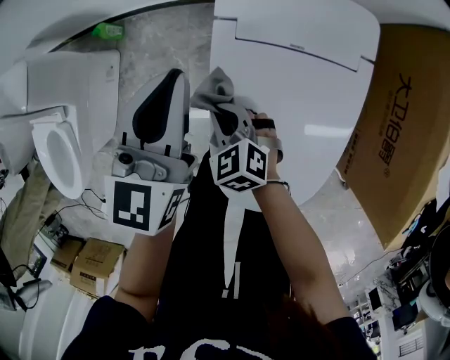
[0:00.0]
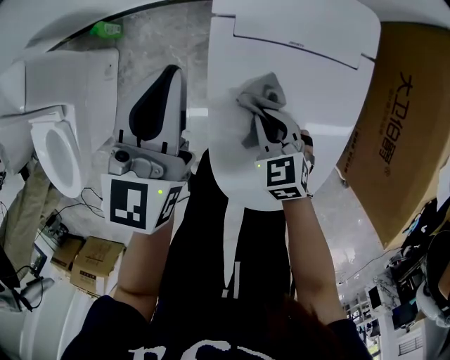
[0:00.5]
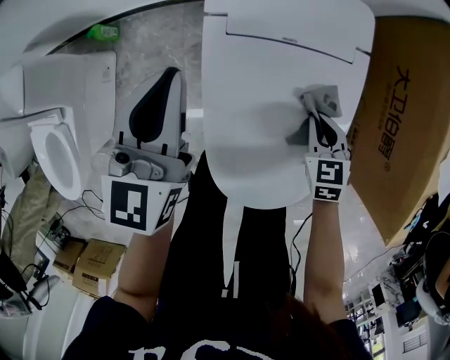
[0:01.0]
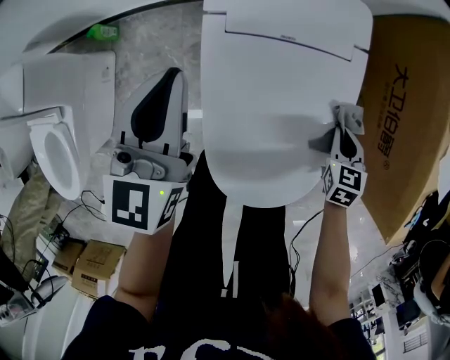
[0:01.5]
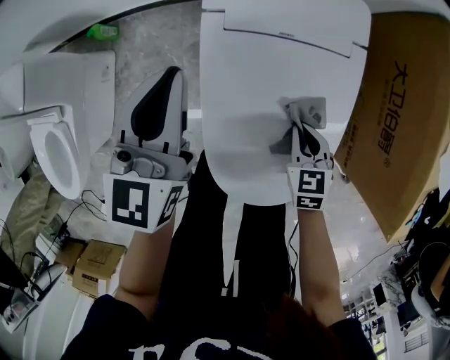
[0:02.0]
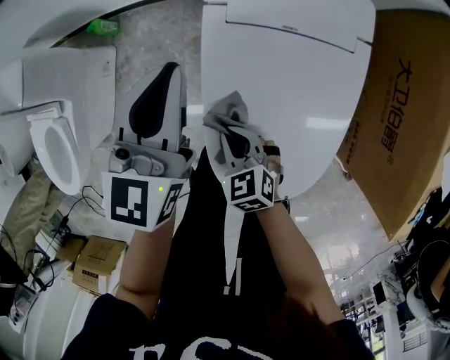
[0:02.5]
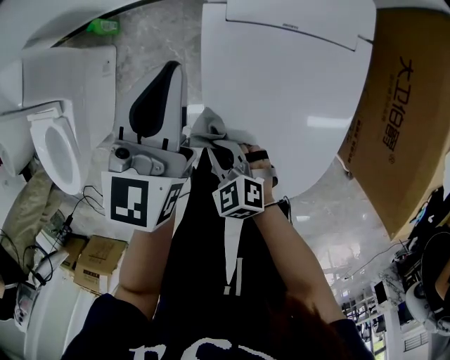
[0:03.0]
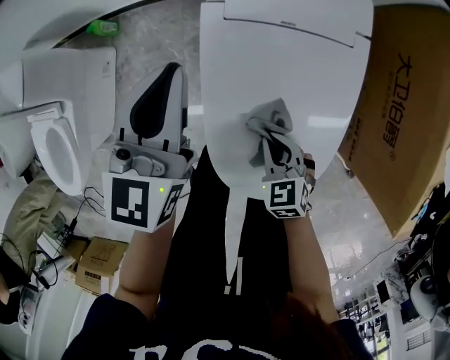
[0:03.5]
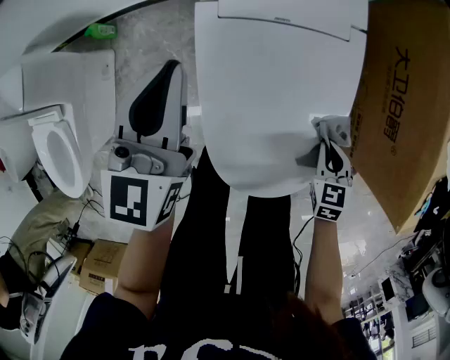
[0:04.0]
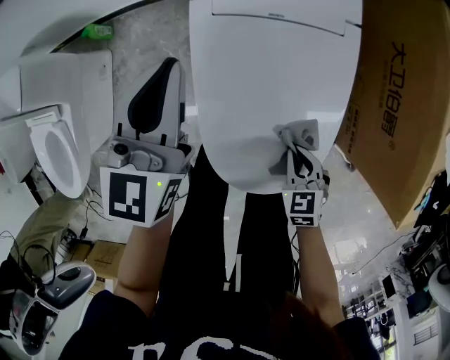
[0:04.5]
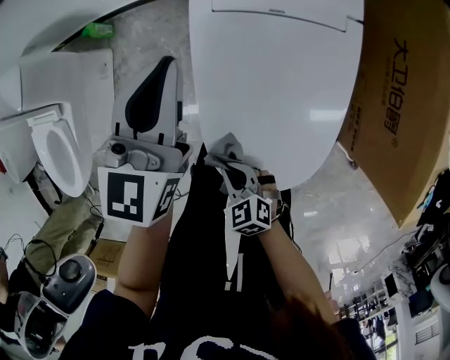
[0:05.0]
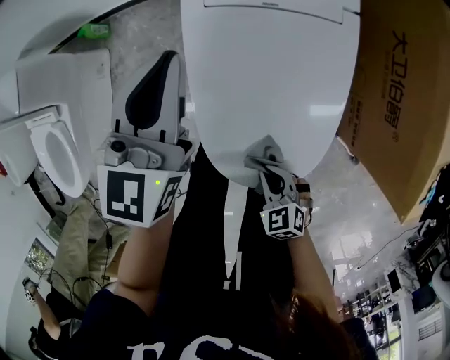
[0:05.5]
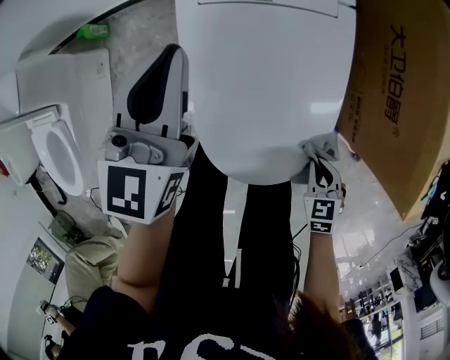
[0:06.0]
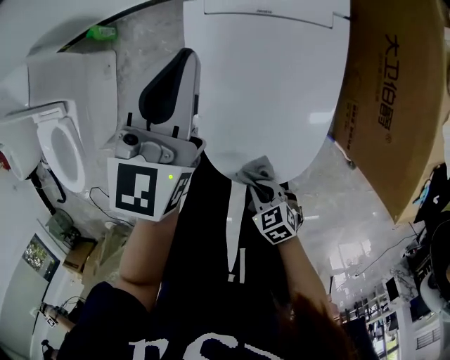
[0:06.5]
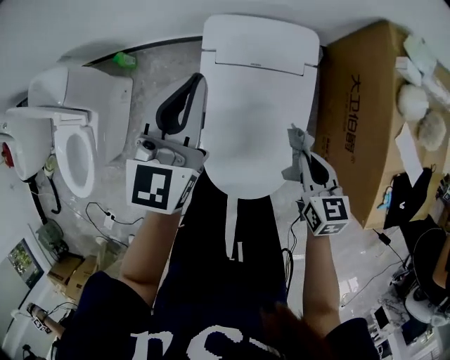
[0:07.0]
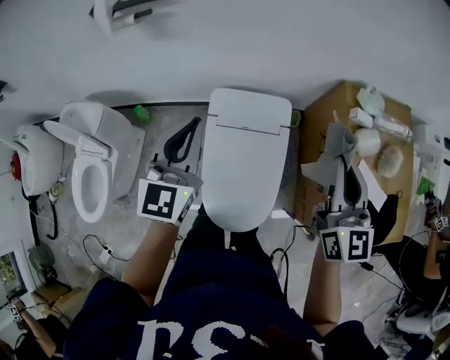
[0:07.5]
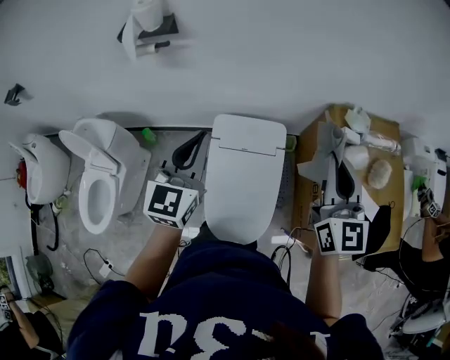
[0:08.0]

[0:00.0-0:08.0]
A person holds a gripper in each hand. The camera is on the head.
0:00.0 to 0:02.0: The right gripper swivels some 30 degrees.
0:06.0 to 0:08.0: The left gripper travels upward by some 40 cm; the right gripper is displaced upward by about 70 cm, and tilts its fingers some 70 degrees upward.

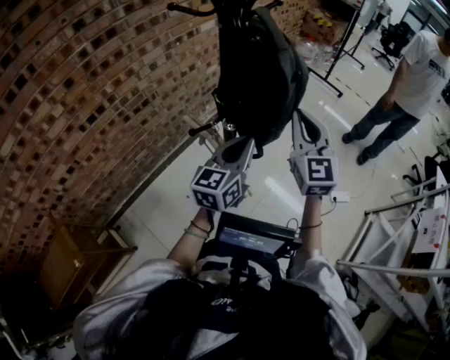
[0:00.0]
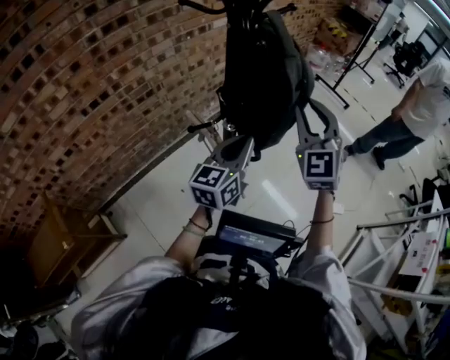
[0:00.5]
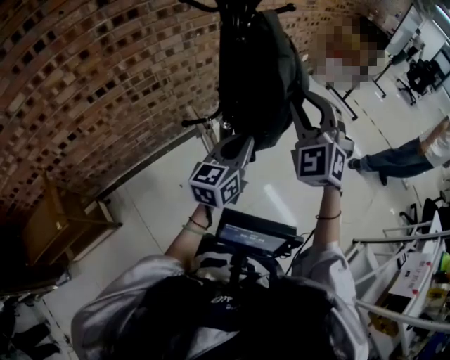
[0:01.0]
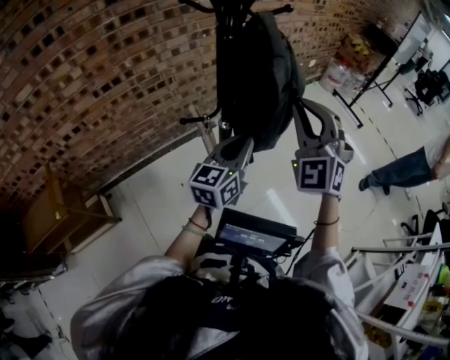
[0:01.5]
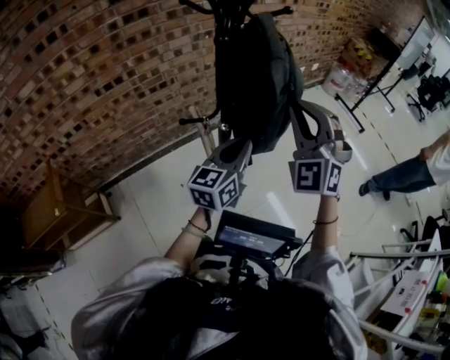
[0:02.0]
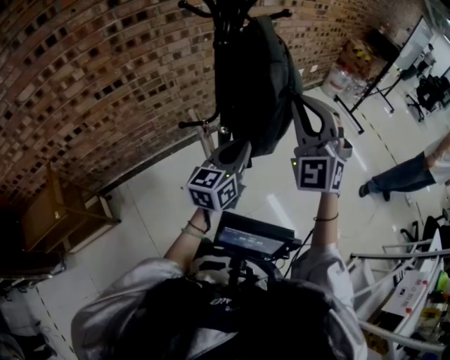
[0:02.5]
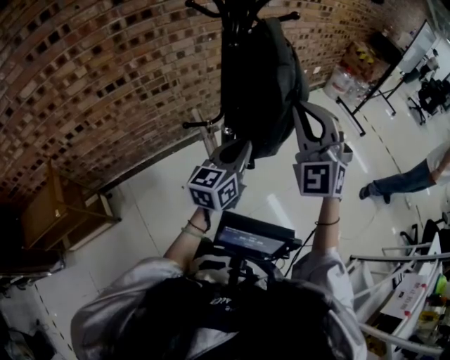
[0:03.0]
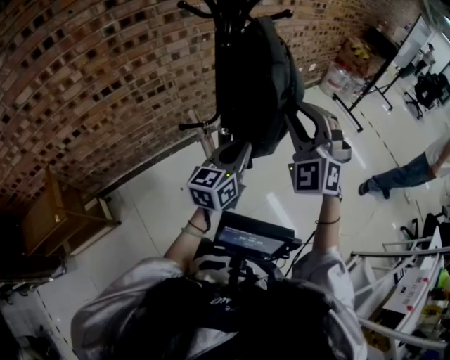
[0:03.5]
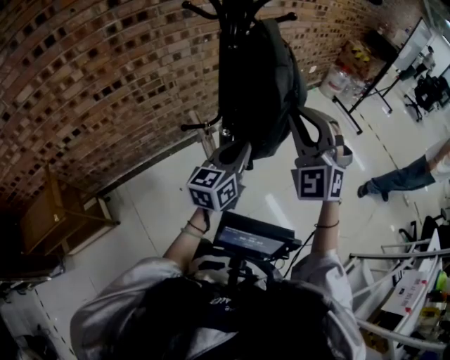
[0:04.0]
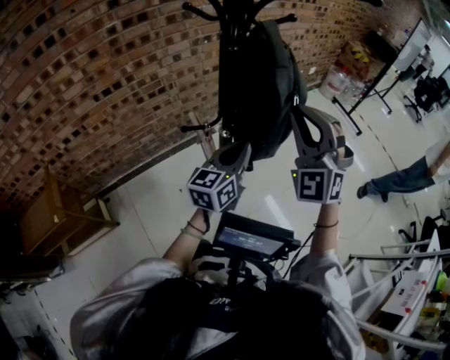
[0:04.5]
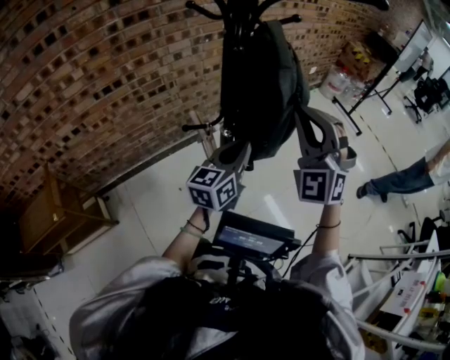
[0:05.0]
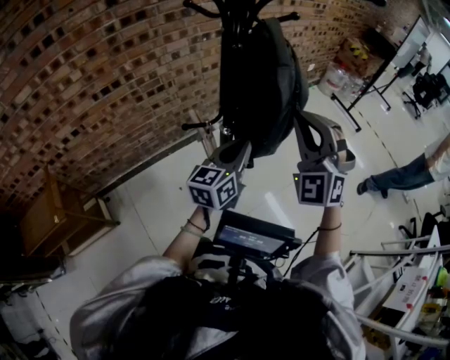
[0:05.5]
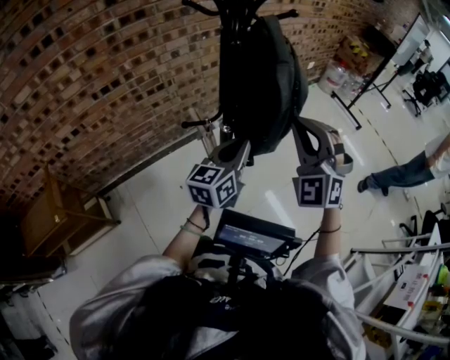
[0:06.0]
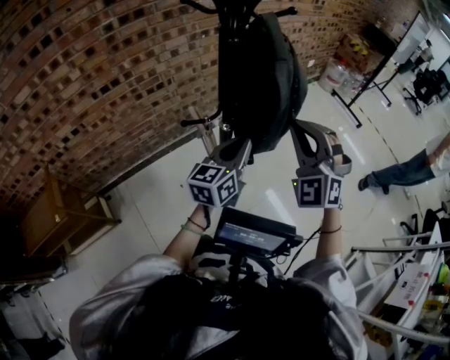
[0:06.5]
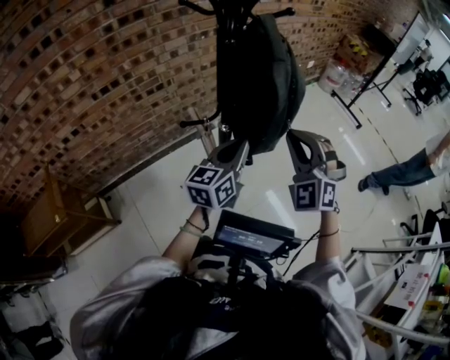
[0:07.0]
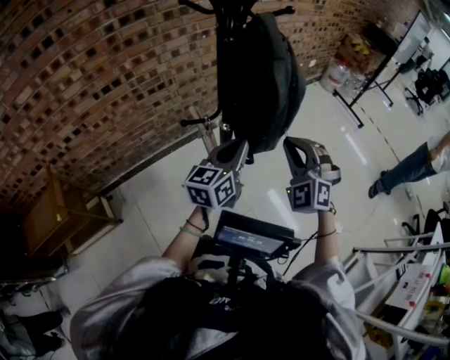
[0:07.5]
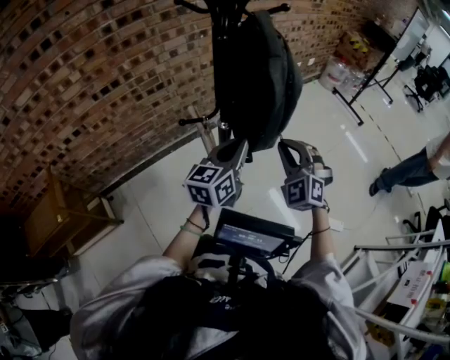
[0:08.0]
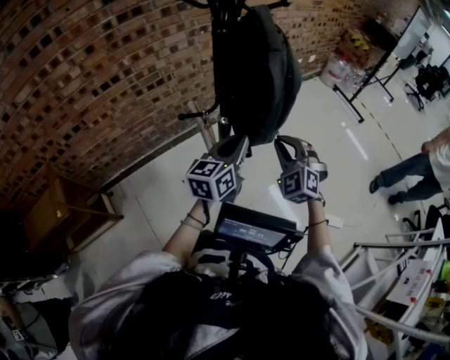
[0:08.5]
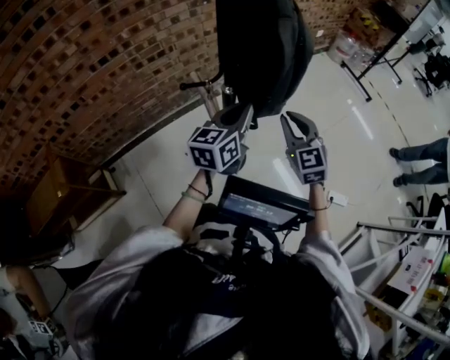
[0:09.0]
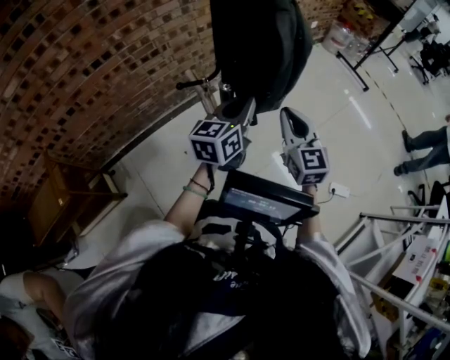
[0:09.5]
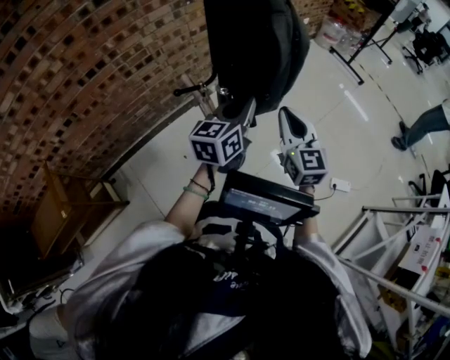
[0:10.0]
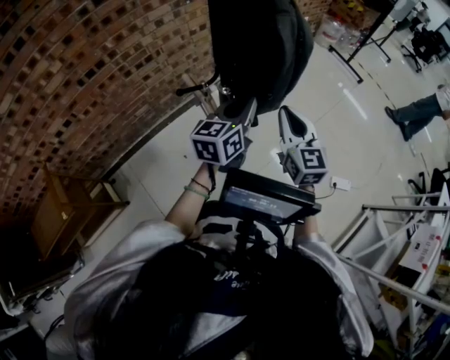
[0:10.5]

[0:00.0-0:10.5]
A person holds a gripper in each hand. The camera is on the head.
0:00.0 to 0:02.0: The right gripper moves roughly 5 cm, and rotates around the line of its fingers by roughly 40 degrees, counterclockwise from behind.
0:02.0 to 0:04.0: The grippers make only small movements.
0:04.0 to 0:06.5: The right gripper shifts by approximately 5 cm.
0:06.5 to 0:08.5: The right gripper is displaced downward by about 15 cm.
0:08.5 to 0:10.5: The right gripper ends up some 5 cm from where it was, and rotates around the line of its fingers by approximately 50 degrees, clockwise from behind.

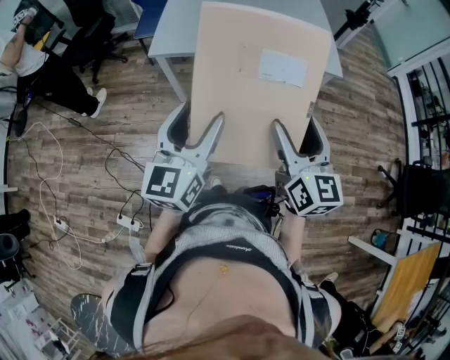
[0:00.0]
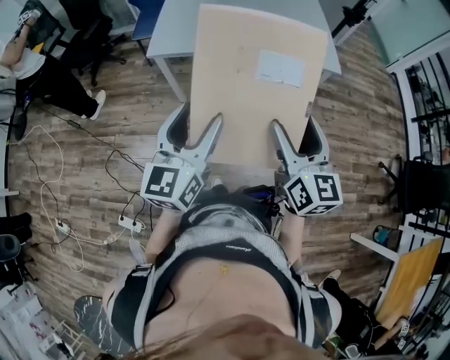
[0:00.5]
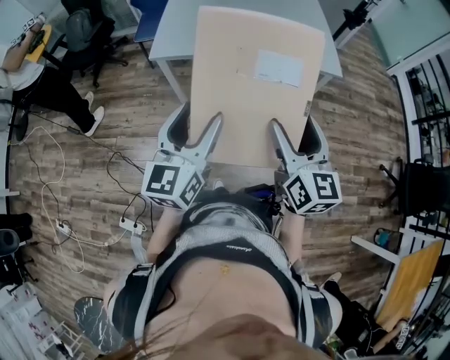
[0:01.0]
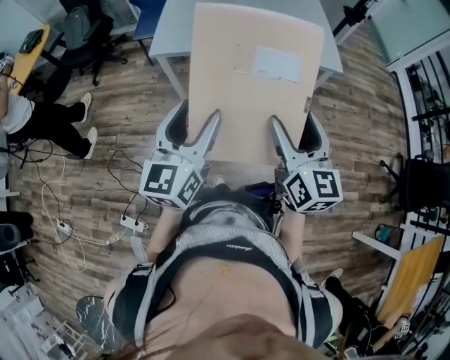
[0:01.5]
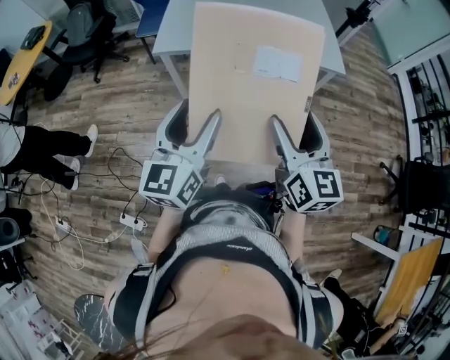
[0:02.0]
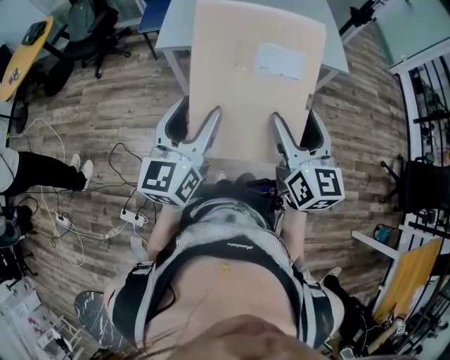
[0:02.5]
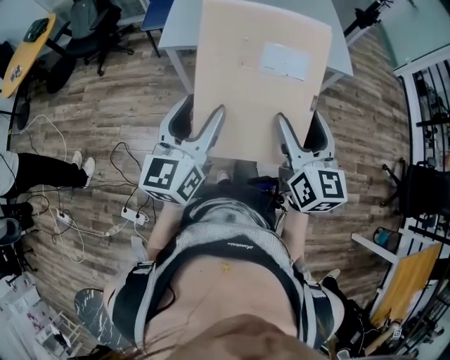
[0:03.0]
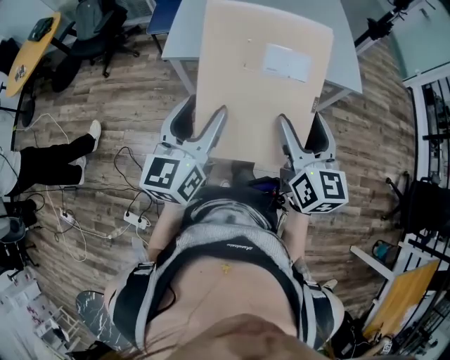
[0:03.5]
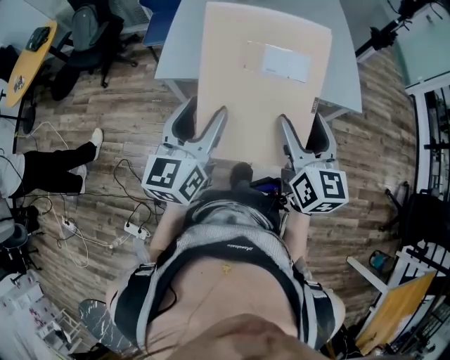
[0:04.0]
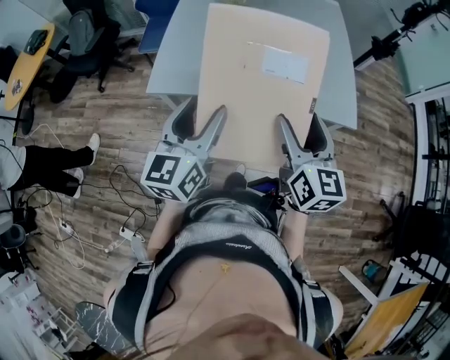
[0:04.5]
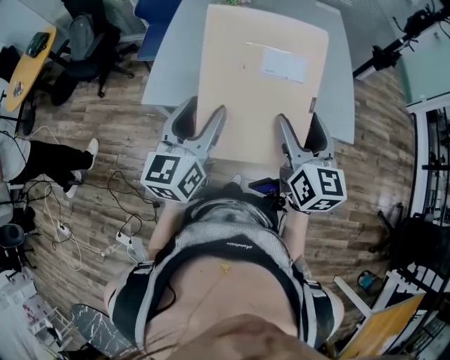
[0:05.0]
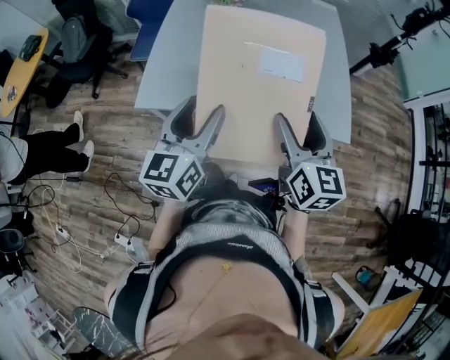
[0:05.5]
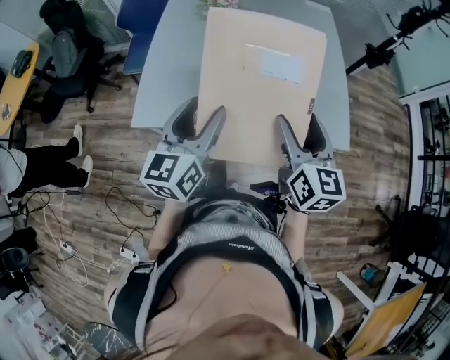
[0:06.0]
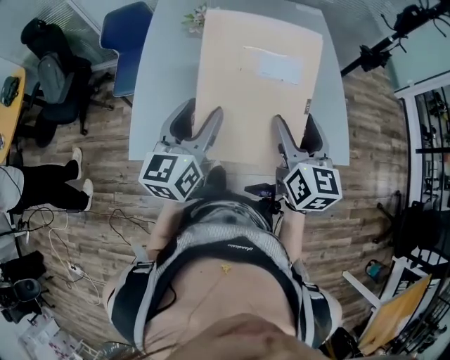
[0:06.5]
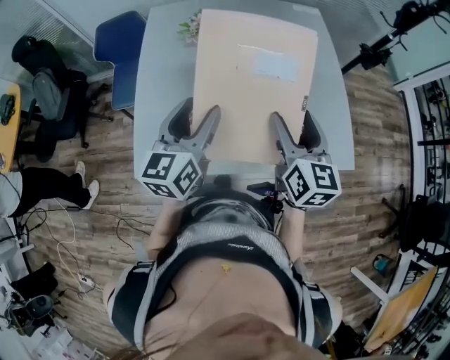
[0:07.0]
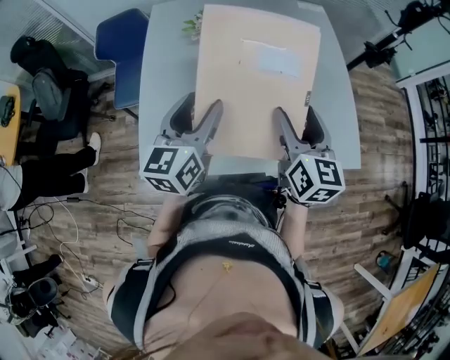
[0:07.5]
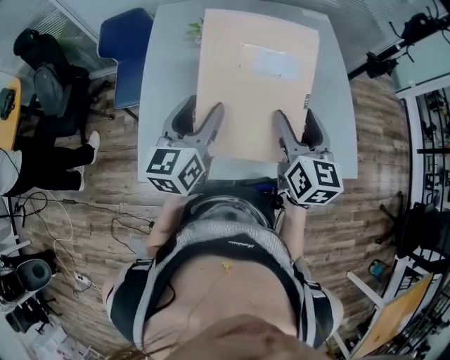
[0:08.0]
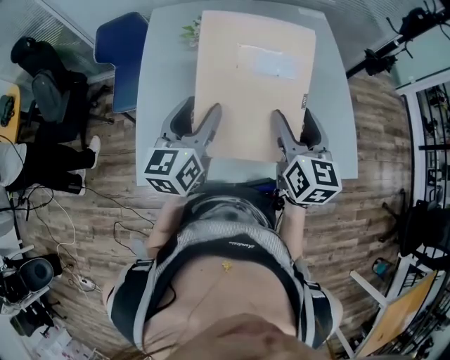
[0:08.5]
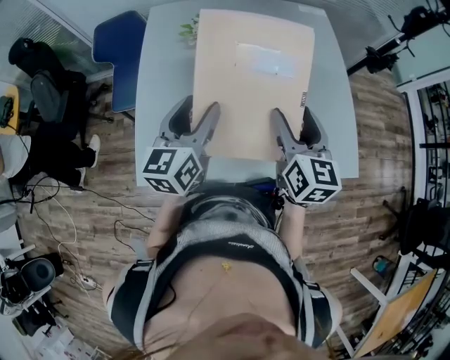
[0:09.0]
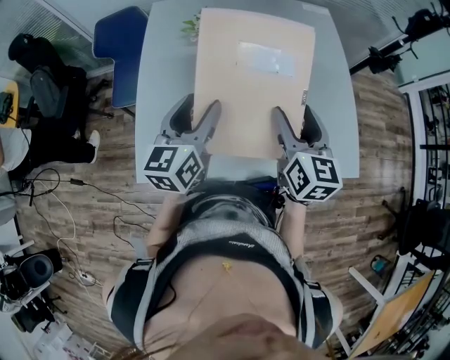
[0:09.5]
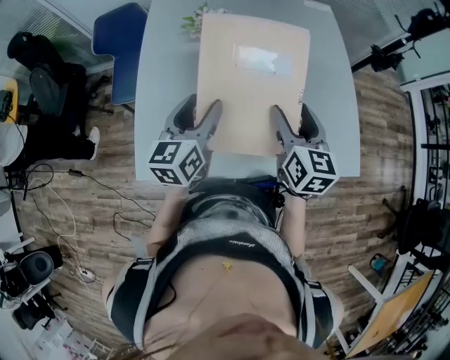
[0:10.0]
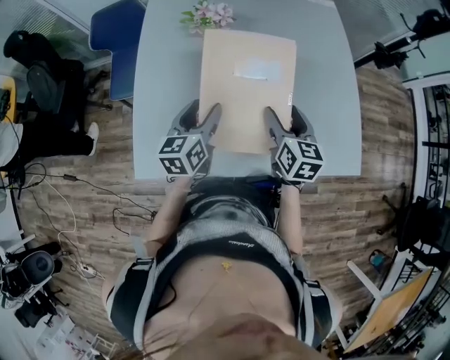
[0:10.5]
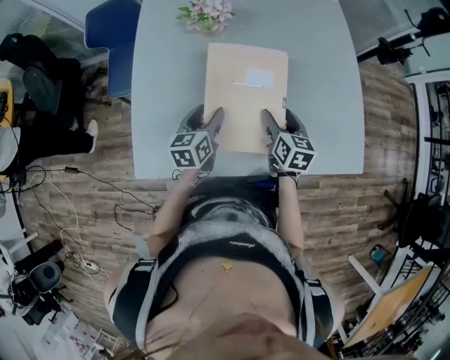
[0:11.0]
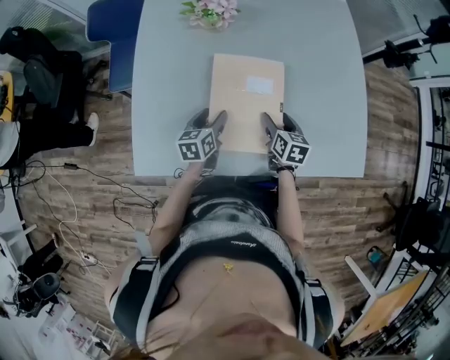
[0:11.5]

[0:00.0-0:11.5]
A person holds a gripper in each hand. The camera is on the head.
0:00.0 to 0:02.0: The grippers move only a little.
0:02.0 to 0:04.0: The grippers both shift forward by about 20 cm.
0:04.0 to 0:06.0: Both grippers move forward, about 20 cm.
0:06.0 to 0:07.5: The two grippers go approximately 20 cm forward.
0:07.5 to 0:09.5: There are only small adjustments of the grippers.
0:09.5 to 0:11.5: The grippers both shift downward by approximately 30 cm. The right gripper changes its angle by approximately 30 degrees; the left gripper swivels about 30 degrees.
